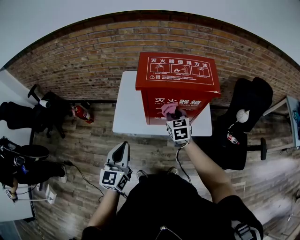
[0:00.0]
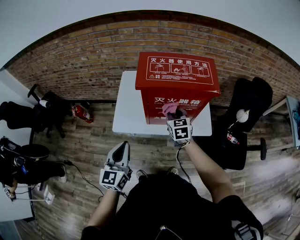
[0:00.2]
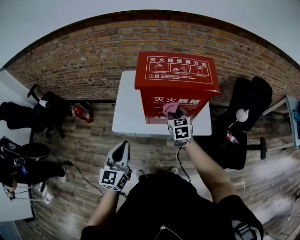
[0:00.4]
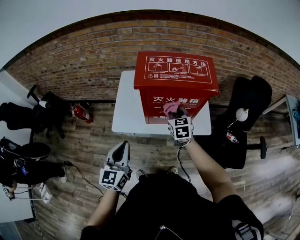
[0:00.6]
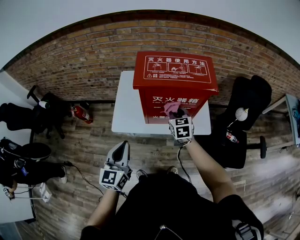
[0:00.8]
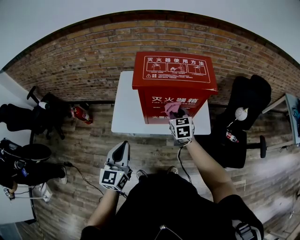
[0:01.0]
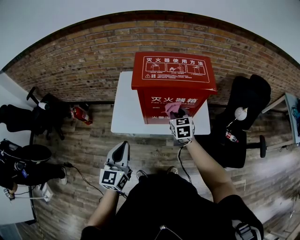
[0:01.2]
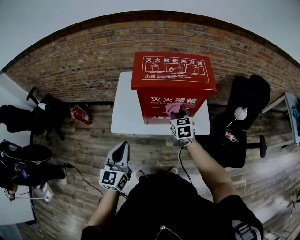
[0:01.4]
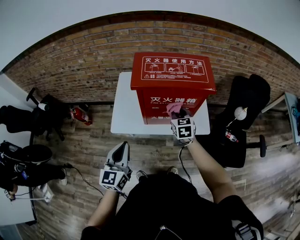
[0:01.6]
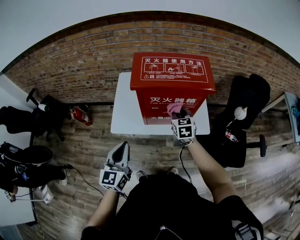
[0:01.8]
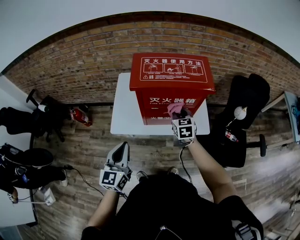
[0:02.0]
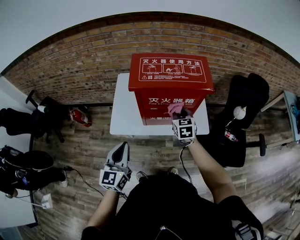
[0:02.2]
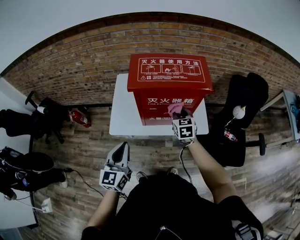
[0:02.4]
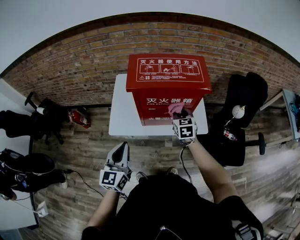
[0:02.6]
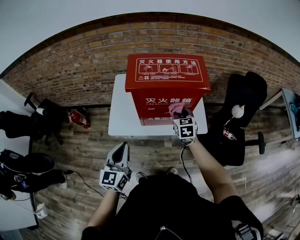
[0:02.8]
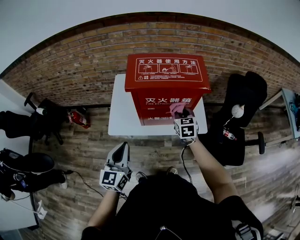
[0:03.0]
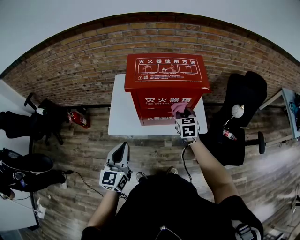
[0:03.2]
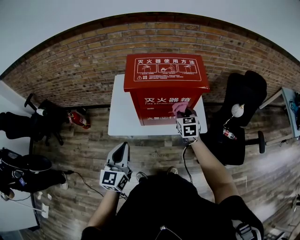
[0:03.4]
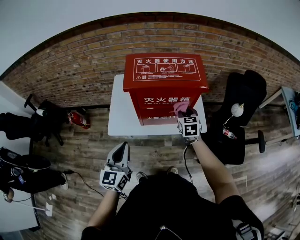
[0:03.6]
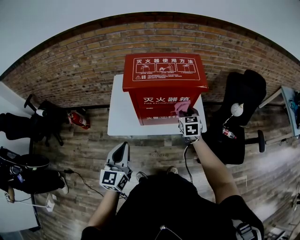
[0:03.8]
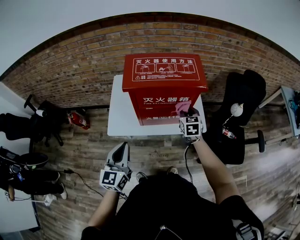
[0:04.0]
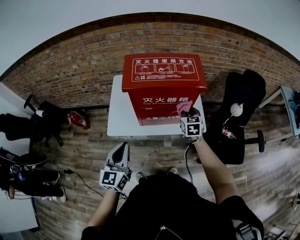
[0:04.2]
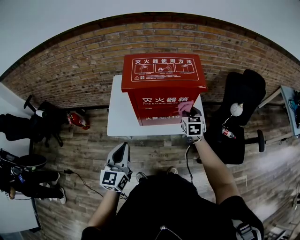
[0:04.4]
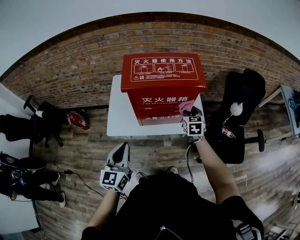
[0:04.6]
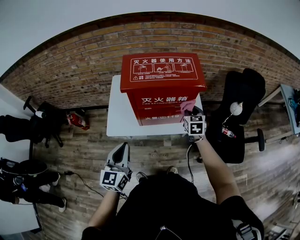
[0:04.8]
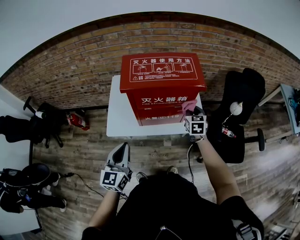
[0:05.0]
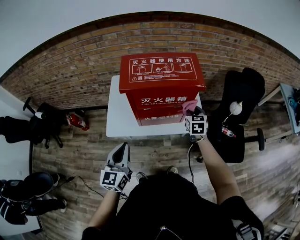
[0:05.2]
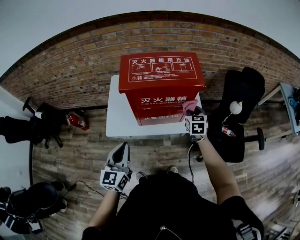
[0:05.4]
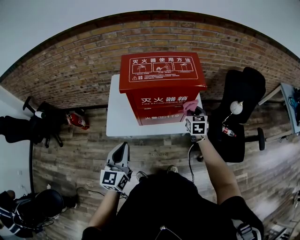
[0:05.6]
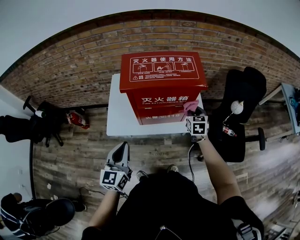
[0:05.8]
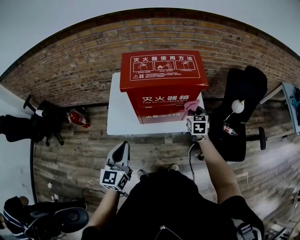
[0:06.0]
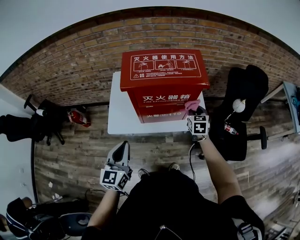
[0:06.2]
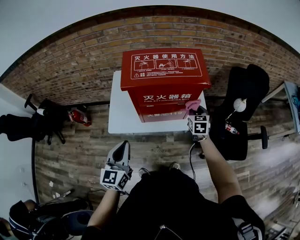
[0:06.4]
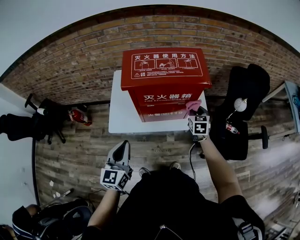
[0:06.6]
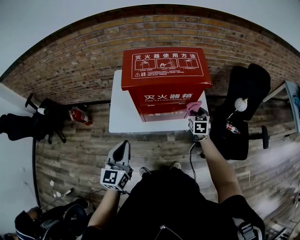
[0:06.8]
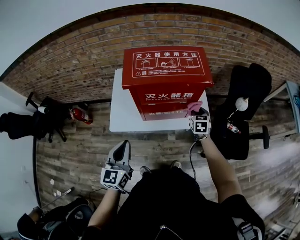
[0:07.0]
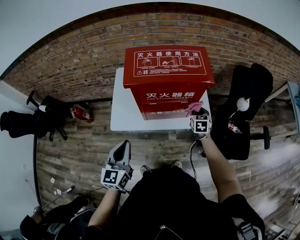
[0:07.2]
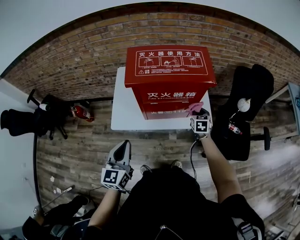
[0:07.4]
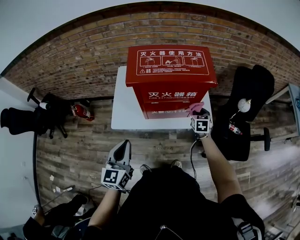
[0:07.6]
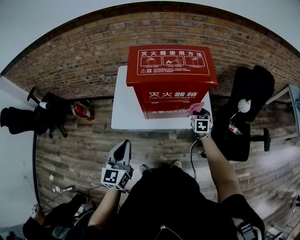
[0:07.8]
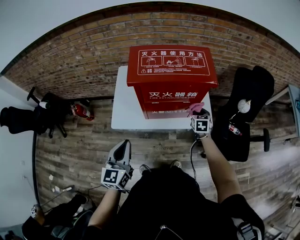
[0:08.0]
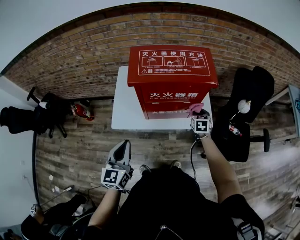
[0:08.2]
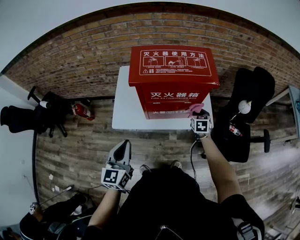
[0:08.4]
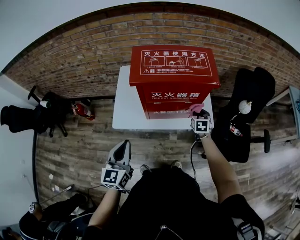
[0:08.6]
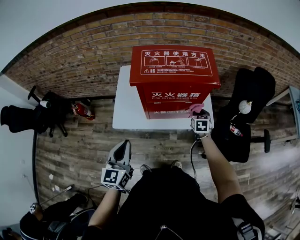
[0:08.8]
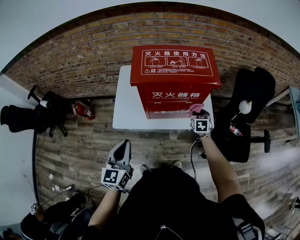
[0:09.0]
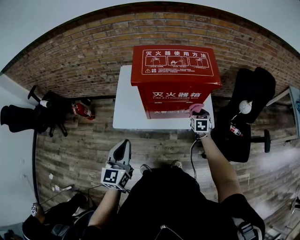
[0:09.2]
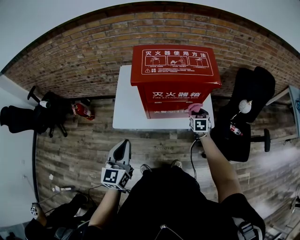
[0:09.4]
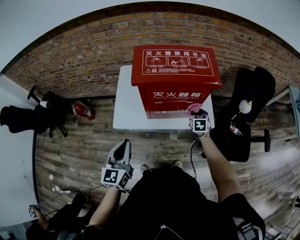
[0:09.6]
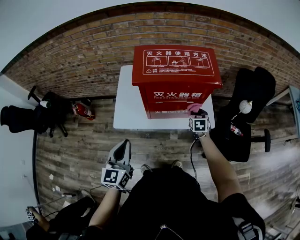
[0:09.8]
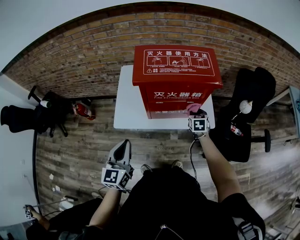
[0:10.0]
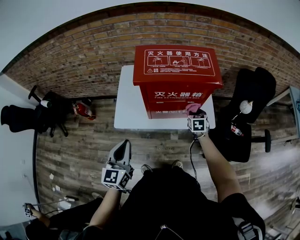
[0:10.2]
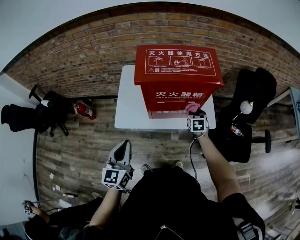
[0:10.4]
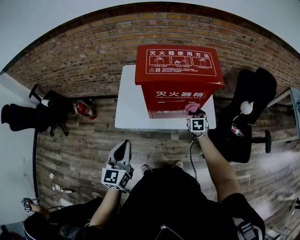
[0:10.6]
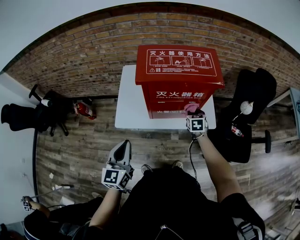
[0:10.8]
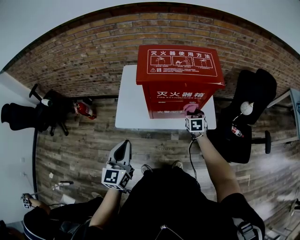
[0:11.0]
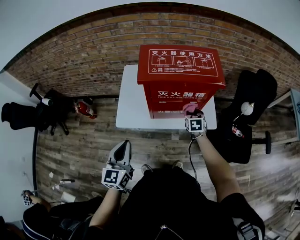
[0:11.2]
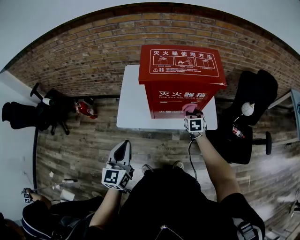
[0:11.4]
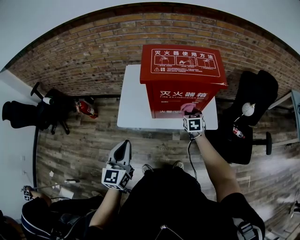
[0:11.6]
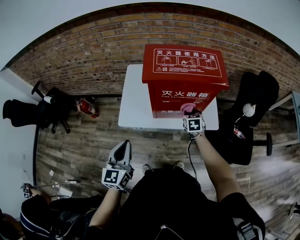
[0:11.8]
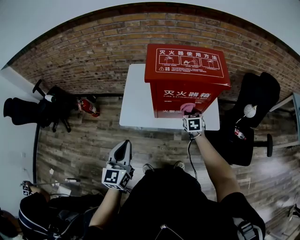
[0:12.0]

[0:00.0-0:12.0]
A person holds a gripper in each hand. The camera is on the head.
0:00.0 to 0:01.6: The grippers stay close to where they were, moving slightly.
0:01.6 to 0:03.0: The grippers move only a little.
0:03.0 to 0:04.4: The right gripper heads to the right, covering some 5 cm.
0:04.4 to 0:06.0: The grippers move only a little.
0:06.0 to 0:07.6: The right gripper goes roughly 5 cm downward.
0:07.6 to 0:10.4: The grippers stay close to where they were, moving slightly.
0:10.4 to 0:12.0: The right gripper goes some 5 cm to the left.

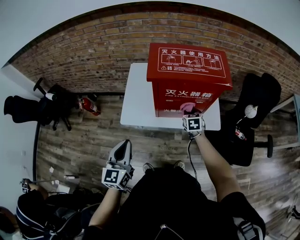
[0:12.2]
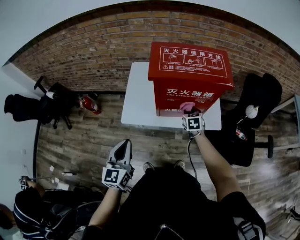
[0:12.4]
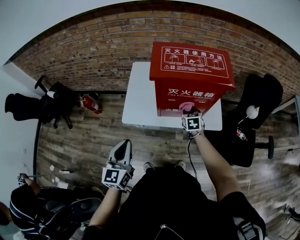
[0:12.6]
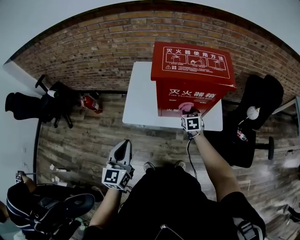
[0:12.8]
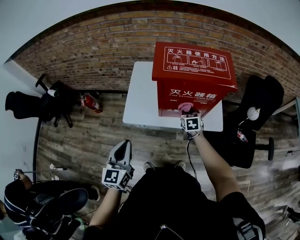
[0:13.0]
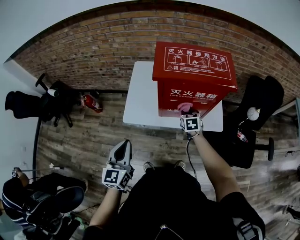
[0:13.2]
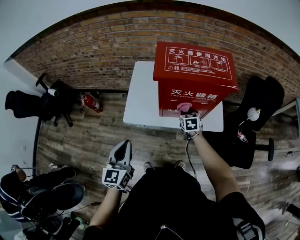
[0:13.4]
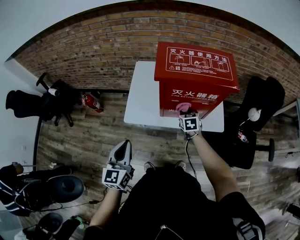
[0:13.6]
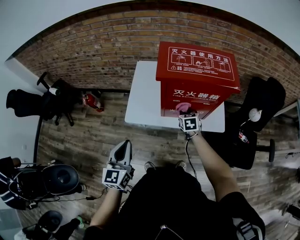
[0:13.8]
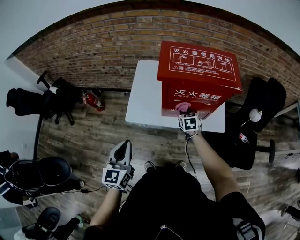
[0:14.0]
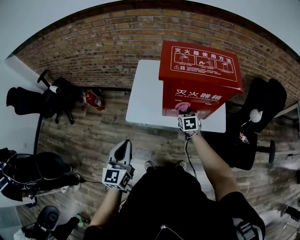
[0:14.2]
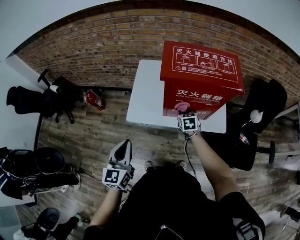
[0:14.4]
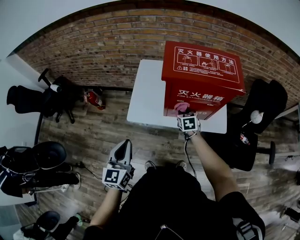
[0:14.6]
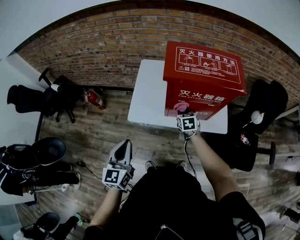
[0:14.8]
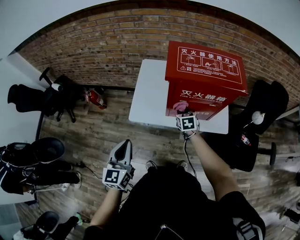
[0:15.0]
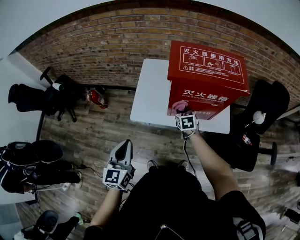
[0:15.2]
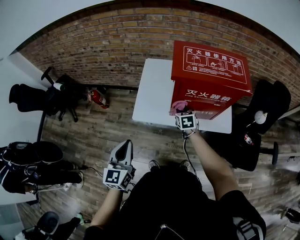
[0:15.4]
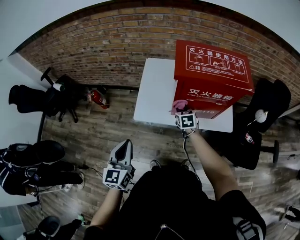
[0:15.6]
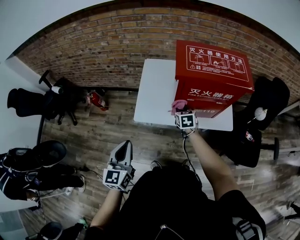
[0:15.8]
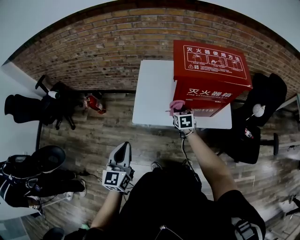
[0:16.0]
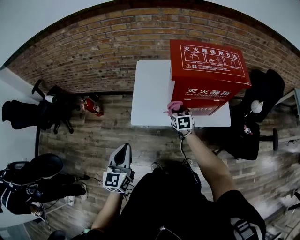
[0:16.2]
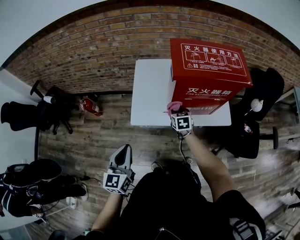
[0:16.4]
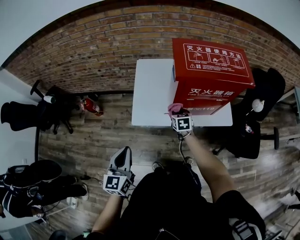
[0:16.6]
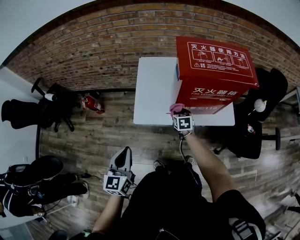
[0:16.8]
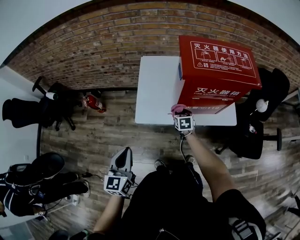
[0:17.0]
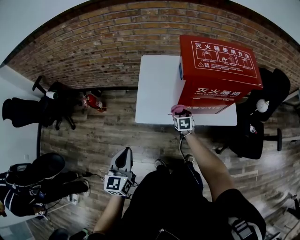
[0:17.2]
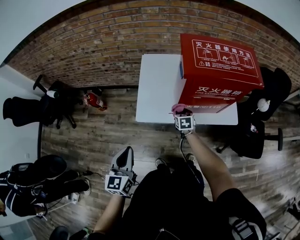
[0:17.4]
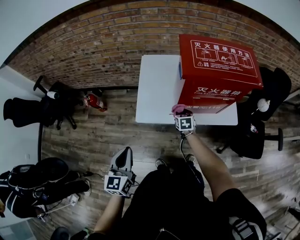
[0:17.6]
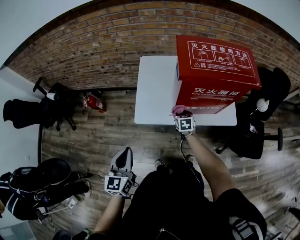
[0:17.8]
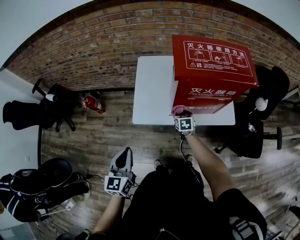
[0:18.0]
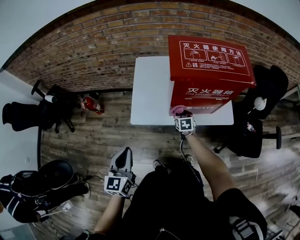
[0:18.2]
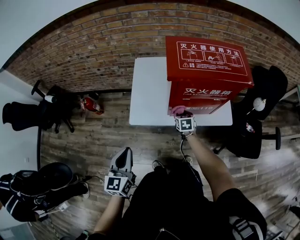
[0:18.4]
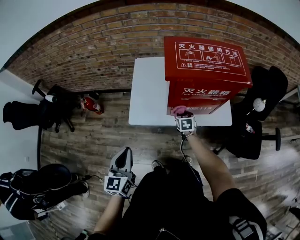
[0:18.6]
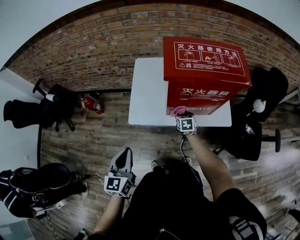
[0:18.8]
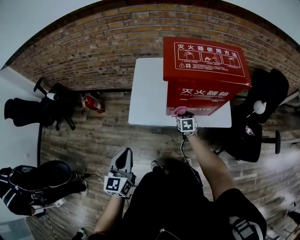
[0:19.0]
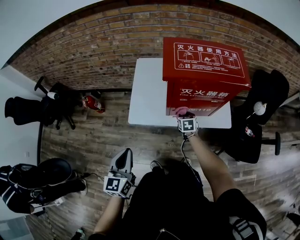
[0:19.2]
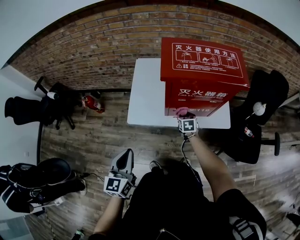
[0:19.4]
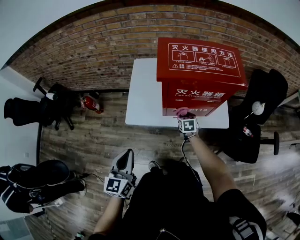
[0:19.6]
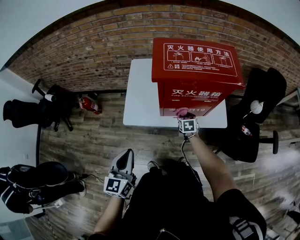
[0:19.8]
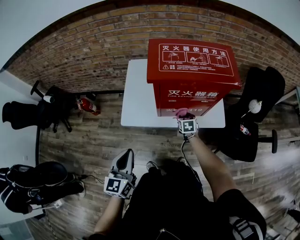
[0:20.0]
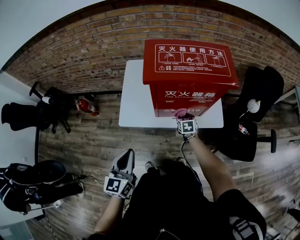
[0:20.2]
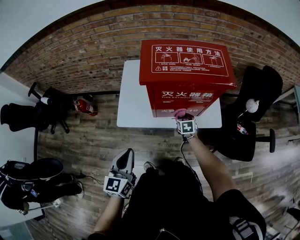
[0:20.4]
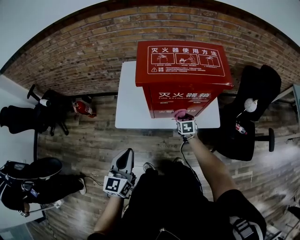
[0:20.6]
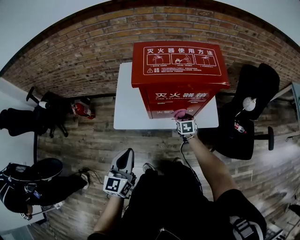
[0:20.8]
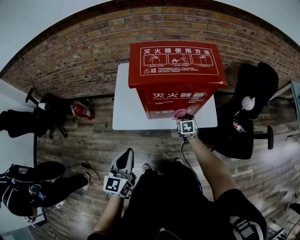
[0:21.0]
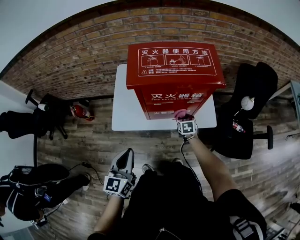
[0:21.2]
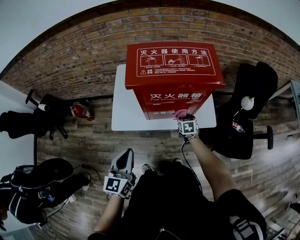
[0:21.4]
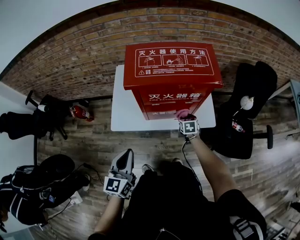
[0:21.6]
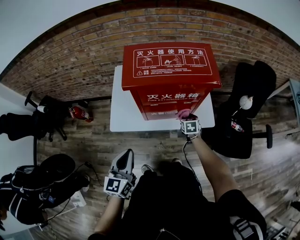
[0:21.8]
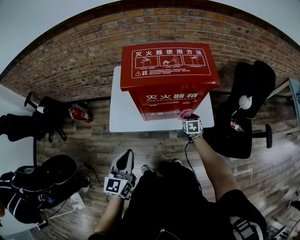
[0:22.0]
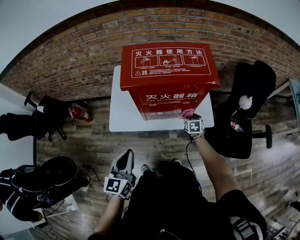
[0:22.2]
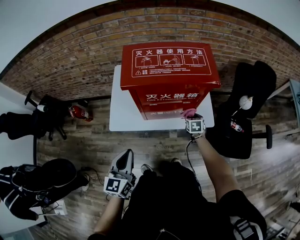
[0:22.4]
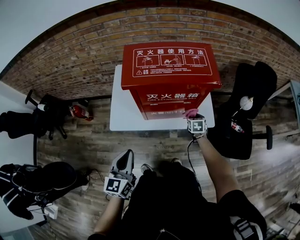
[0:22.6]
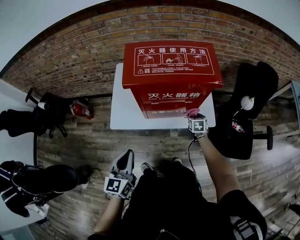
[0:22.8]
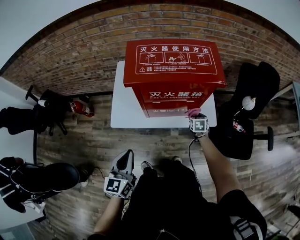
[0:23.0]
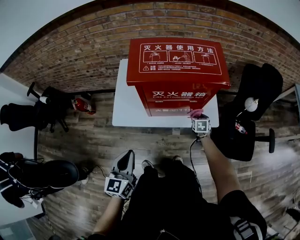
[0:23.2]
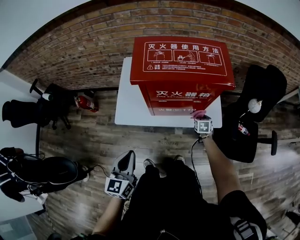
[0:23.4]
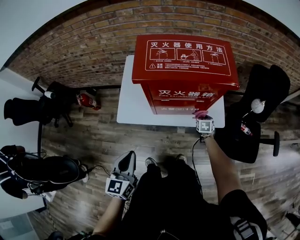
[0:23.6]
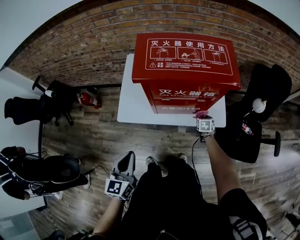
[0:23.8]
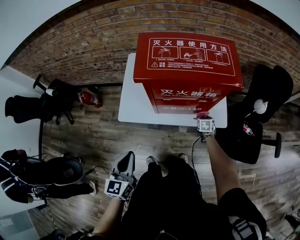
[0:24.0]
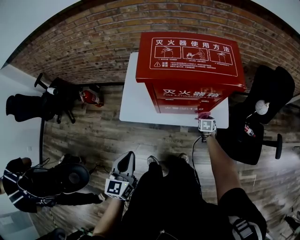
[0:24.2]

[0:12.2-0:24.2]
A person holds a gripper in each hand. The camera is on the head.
0:12.2 to 0:13.8: The right gripper heads to the left, covering some 5 cm.
0:13.8 to 0:15.2: The right gripper is displaced to the left by about 5 cm.
0:15.2 to 0:16.6: The left gripper heads to the left, covering approximately 5 cm; the right gripper moves approximately 5 cm.
0:16.6 to 0:18.2: The right gripper is displaced downward by roughly 5 cm.
0:18.2 to 0:19.8: The two grippers go roughly 10 cm to the right.
0:19.8 to 0:21.2: The grippers both shift to the right by about 10 cm.
0:21.2 to 0:22.6: The right gripper goes about 10 cm to the right.
0:22.6 to 0:24.2: The right gripper moves downward, approximately 10 cm.
